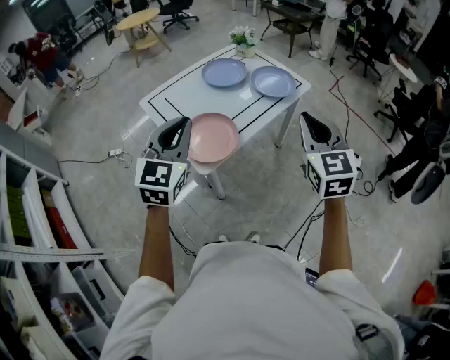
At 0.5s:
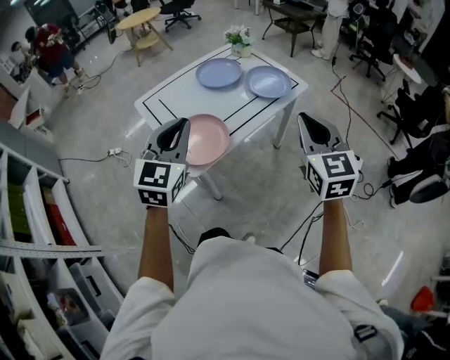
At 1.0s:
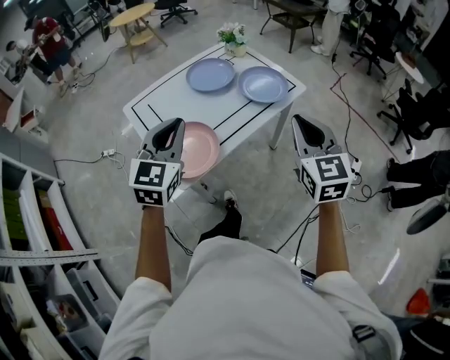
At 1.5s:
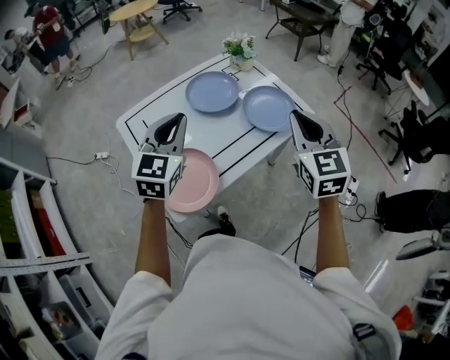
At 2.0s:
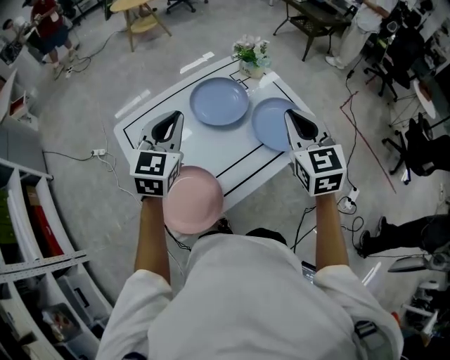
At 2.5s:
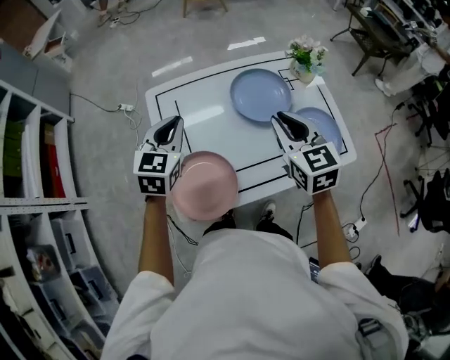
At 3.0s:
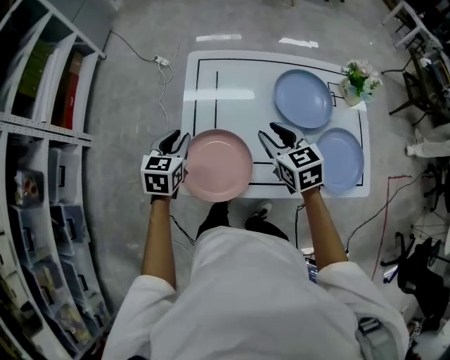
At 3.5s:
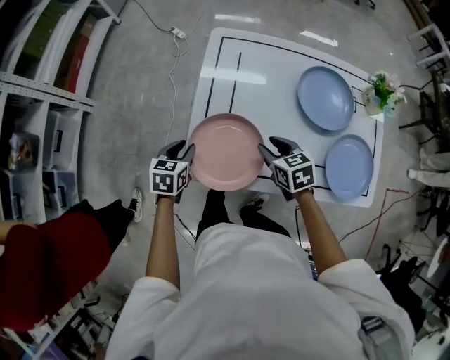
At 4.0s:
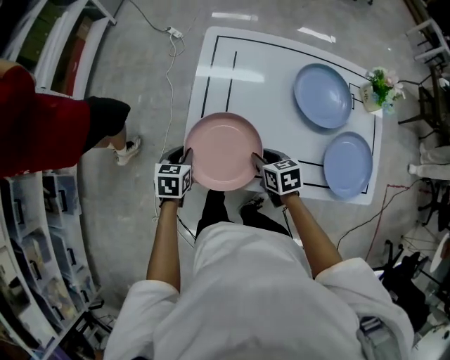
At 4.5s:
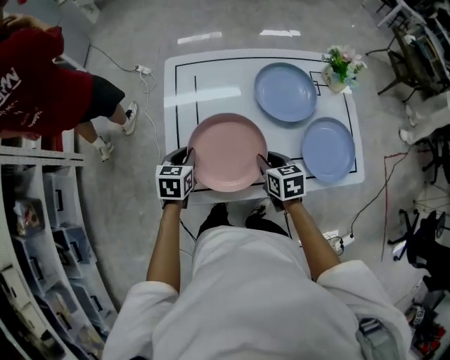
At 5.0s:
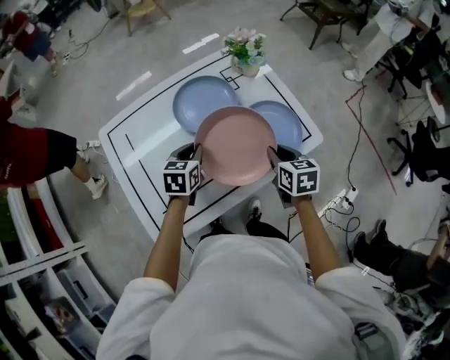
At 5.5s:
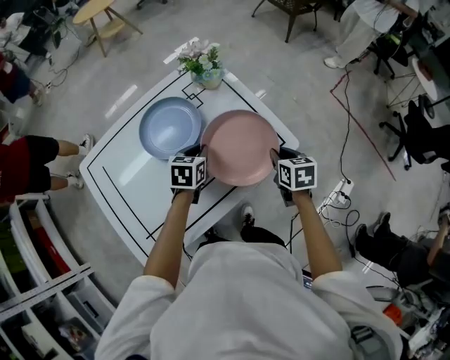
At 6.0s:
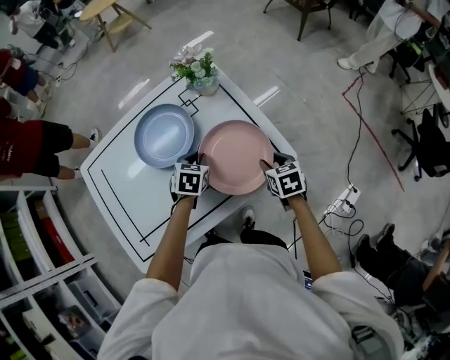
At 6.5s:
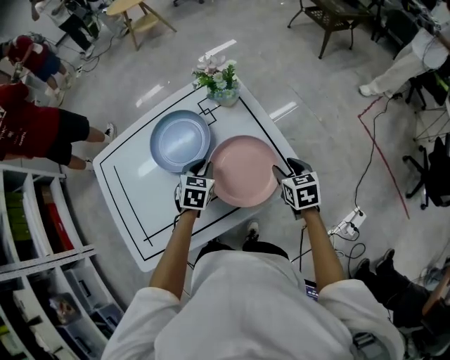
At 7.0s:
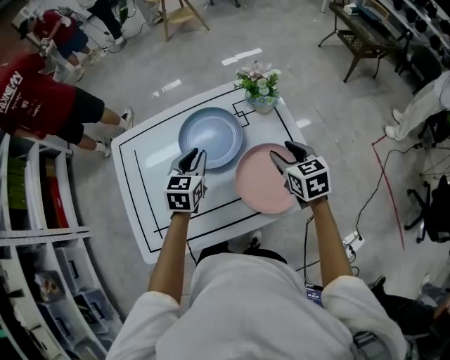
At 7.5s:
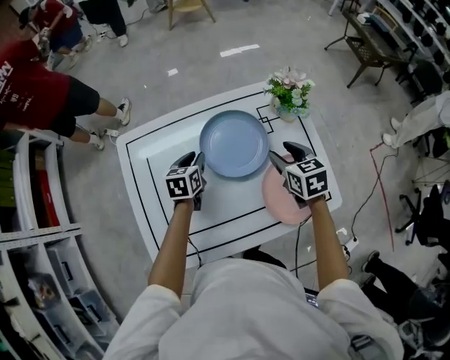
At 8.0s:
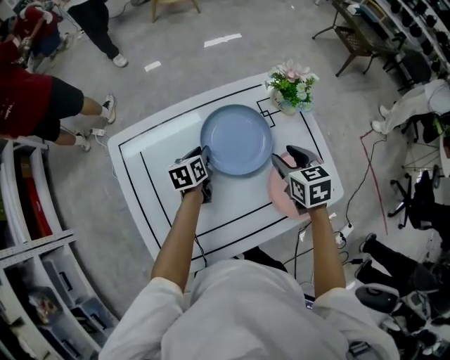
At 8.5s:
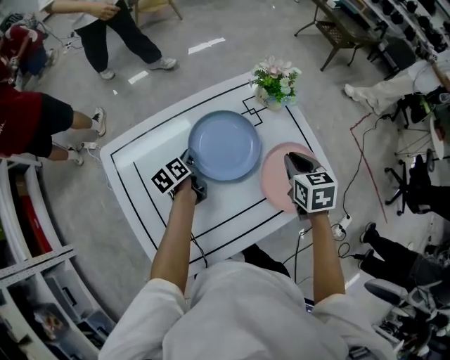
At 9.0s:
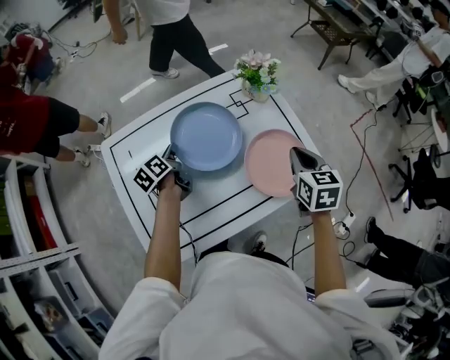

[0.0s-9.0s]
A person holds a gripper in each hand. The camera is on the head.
0.0s to 2.0s: Both grippers travel together forward, approximately 35 cm.
2.0s to 4.5s: The two grippers go about 30 cm downward. The right gripper swivels some 50 degrees. The left gripper points its fingers about 30 degrees further downward.
4.5s to 7.0s: The right gripper swings up and down, approximately 15 cm each way, with 2 reversals, and opens its fingers. Meanwhile the left gripper goes up and down, about 10 cm each way, reversing 2 times, and swivels some 20 degrees.
7.0s to 9.0s: The left gripper moves to the left and downward, about 15 cm, and rotates around the line of its fingers by roughly 50 degrees, counterclockwise from behind. The right gripper is displaced backward by some 5 cm, travels to the left and back again, about 15 cm each way, rotates some 20 degrees, and closes its fingers.

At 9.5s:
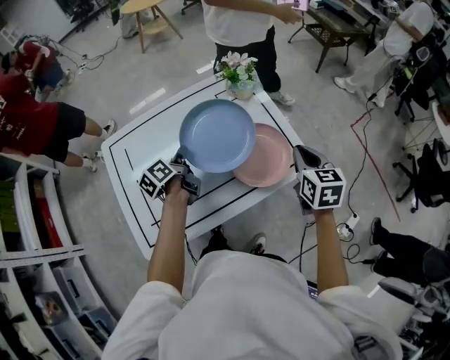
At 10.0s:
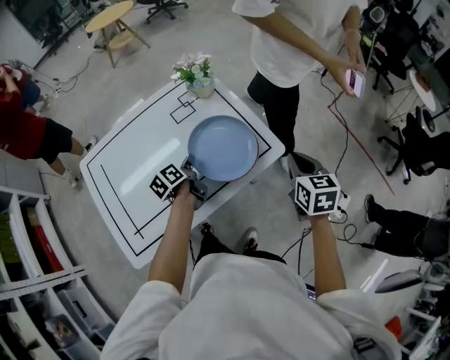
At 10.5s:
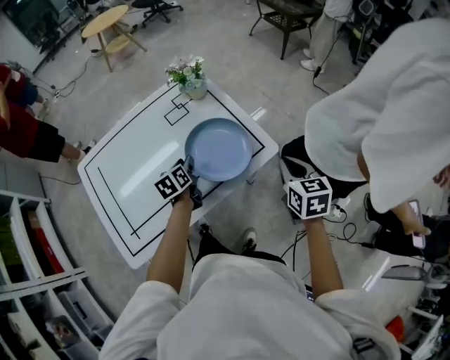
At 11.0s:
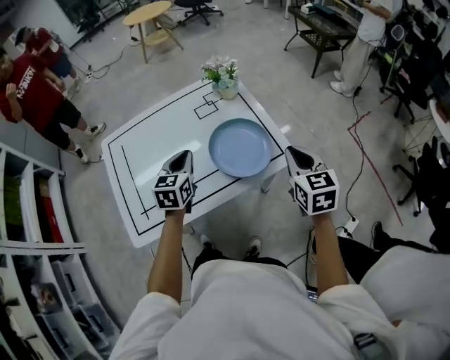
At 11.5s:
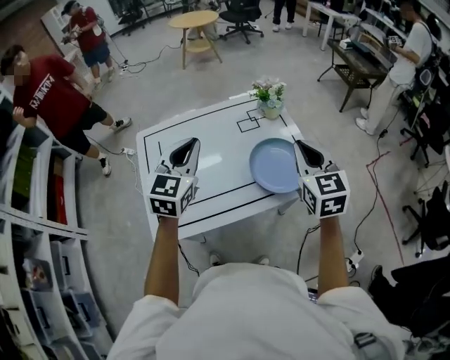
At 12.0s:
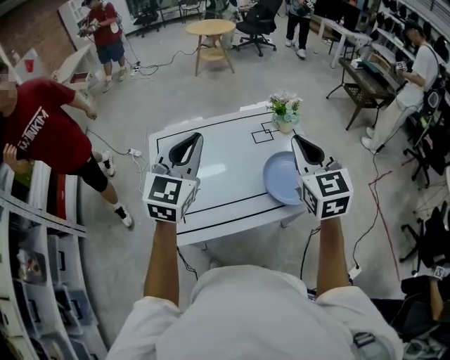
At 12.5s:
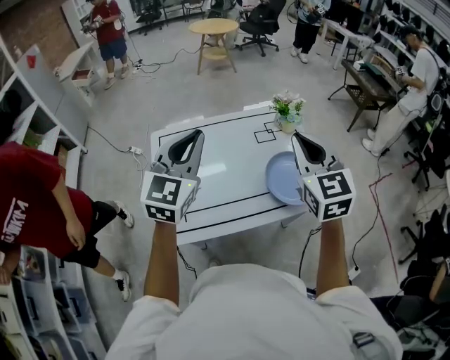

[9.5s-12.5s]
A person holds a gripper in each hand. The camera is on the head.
9.5s to 11.0s: The right gripper shifts about 10 cm backward and to the right, while the left gripper heads to the right, backward and upward, covering about 15 cm, rotates around the line of its fingers by approximately 60 degrees, clockwise from behind, and opens and closes again.
11.0s to 12.5s: The right gripper goes approximately 30 cm to the left and upward, and changes its angle by roughly 30 degrees, while the left gripper goes approximately 30 cm upward and to the left, and turns by some 30 degrees.

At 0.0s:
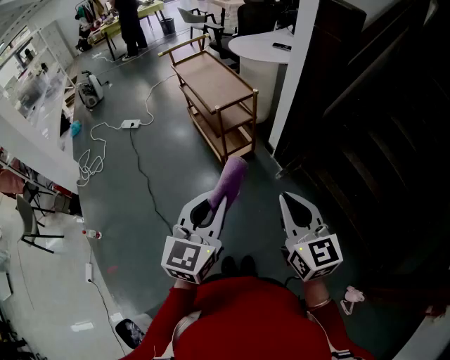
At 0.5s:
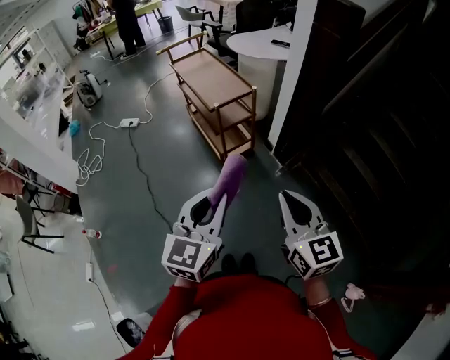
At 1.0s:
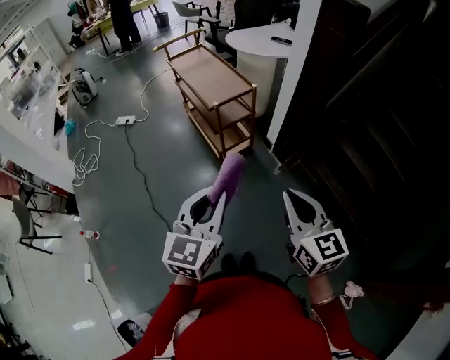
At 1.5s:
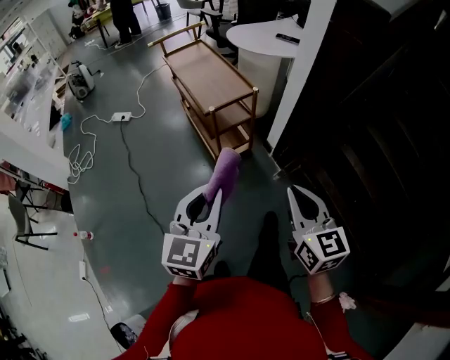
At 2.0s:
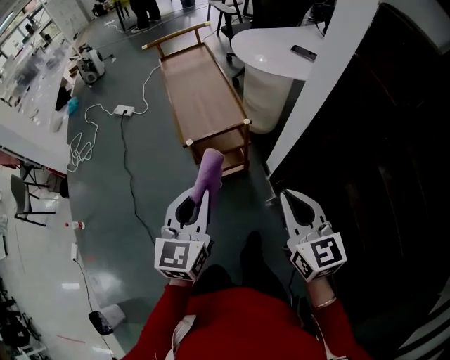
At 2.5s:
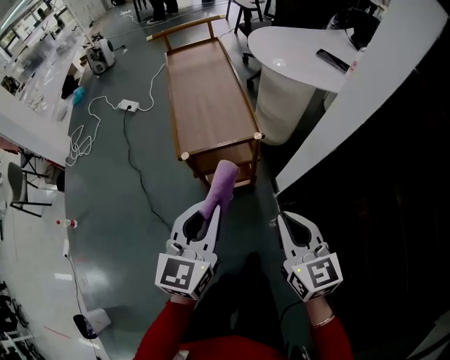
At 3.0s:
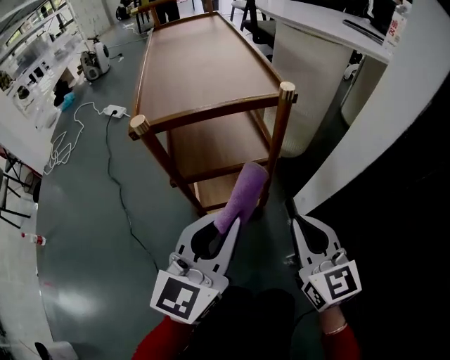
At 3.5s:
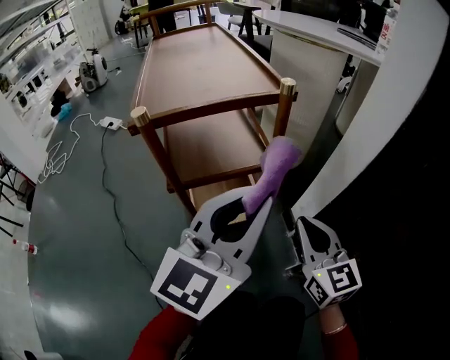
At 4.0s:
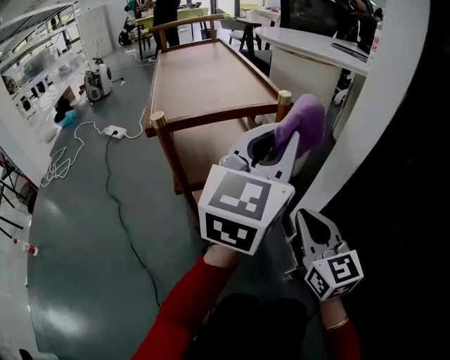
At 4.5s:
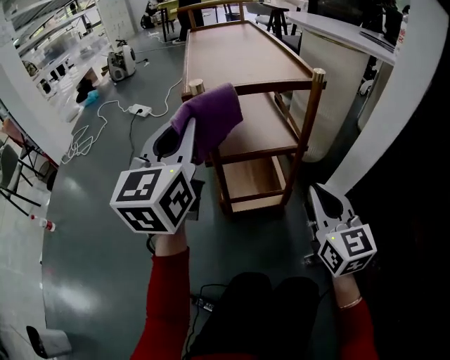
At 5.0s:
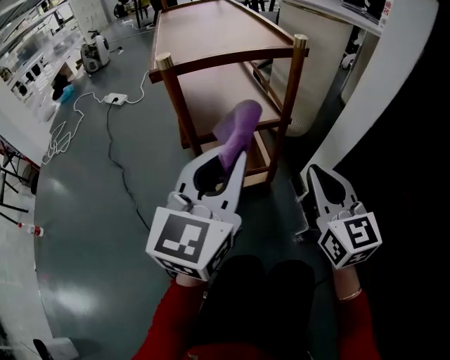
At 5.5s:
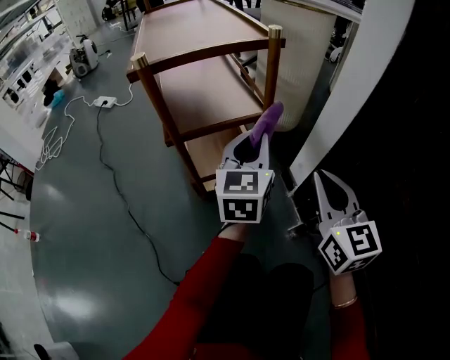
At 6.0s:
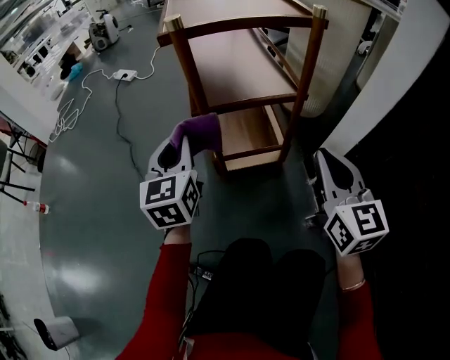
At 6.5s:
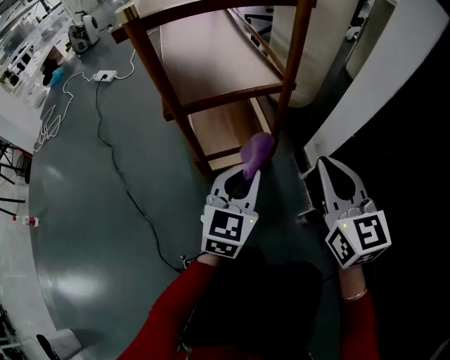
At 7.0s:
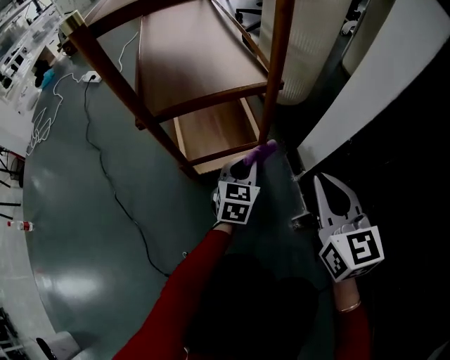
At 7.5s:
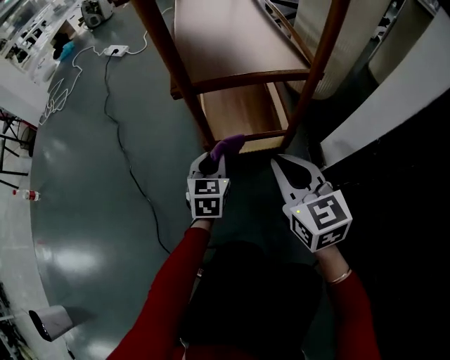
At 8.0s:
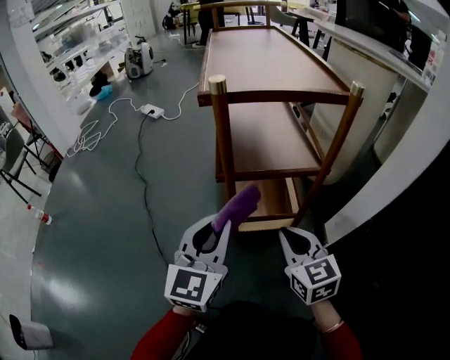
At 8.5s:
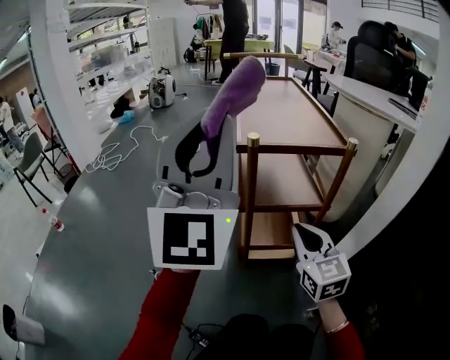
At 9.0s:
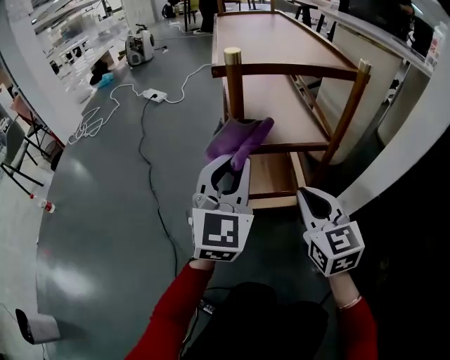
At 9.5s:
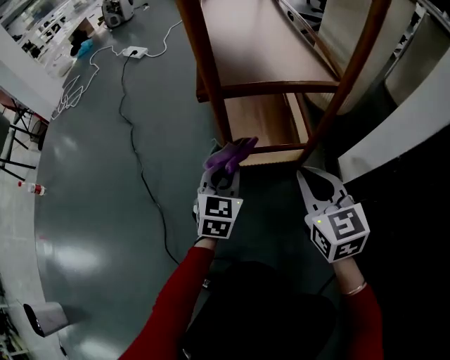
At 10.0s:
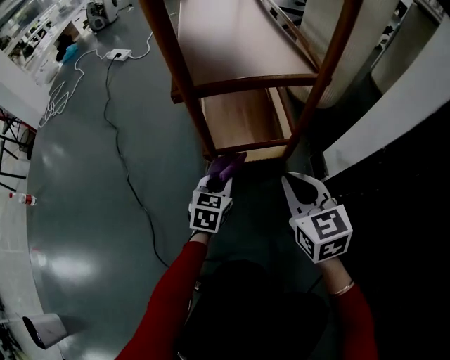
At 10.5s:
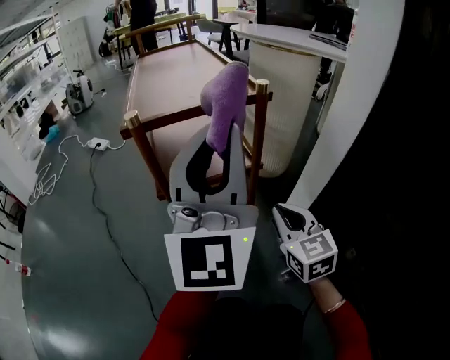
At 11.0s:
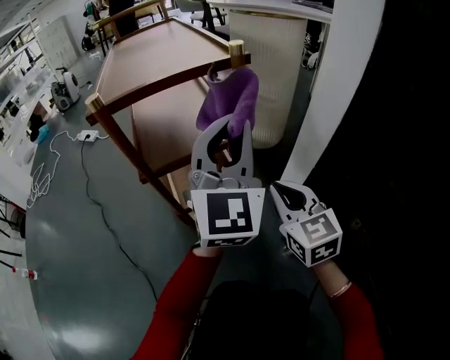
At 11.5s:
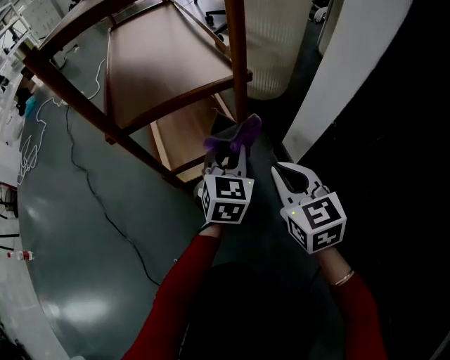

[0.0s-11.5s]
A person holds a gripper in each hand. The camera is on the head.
0.0s to 2.0s: The two grippers go about 30 cm forward. The left gripper turns by some 20 degrees.
2.0s to 4.0s: The right gripper moves downward and forward, about 40 cm. Meanwhile the left gripper moves forward, downward and to the right, some 30 cm, and rotates roughly 20 degrees.
4.0s to 6.0s: The left gripper swings left and right, roughly 25 cm each way, with 2 reversals, and turns by about 40 degrees.
6.0s to 7.5s: The left gripper travels downward by about 25 cm, reaches some 25 cm to the right, then returns, and turns by approximately 20 degrees. The right gripper travels downward and to the left by roughly 15 cm.
7.5s to 9.5s: The right gripper reaches about 15 cm upward, then returns. The left gripper moves approximately 60 cm upward and comes back.
9.5s to 11.5s: The right gripper shifts roughly 10 cm to the right, and travels upward and back again, about 10 cm each way; the left gripper swings up and down, some 50 cm each way, with 2 reversals.

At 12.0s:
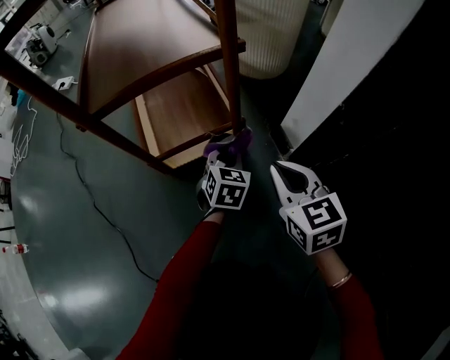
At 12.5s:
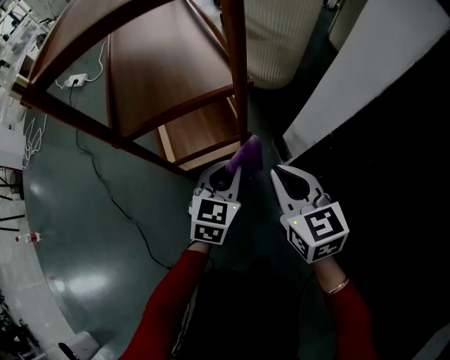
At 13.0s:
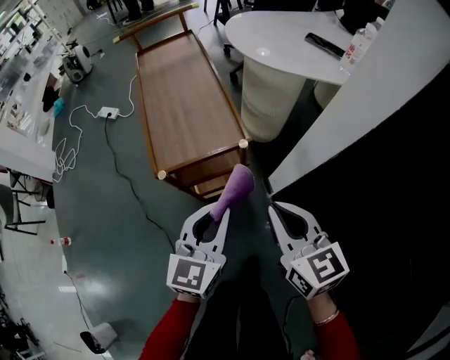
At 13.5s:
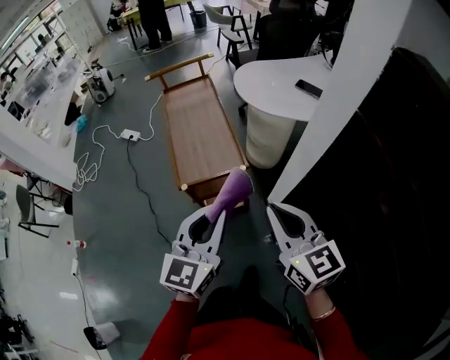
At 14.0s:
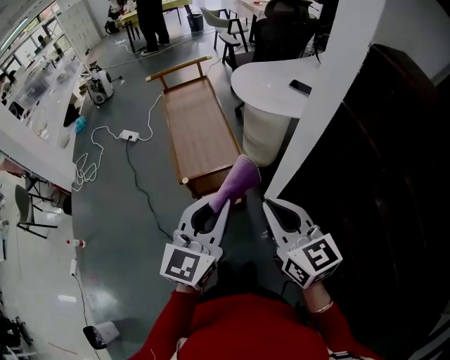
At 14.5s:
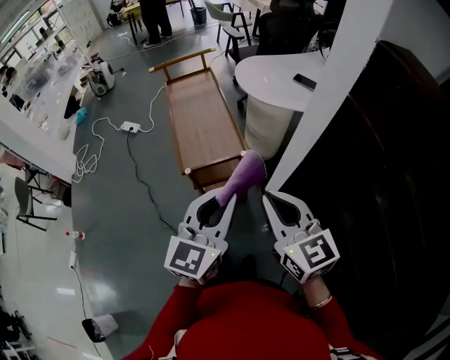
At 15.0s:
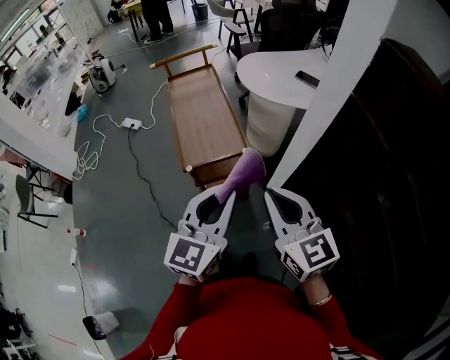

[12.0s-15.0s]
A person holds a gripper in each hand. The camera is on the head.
12.0s to 13.5s: Both grippers move upward, about 70 cm. The left gripper tilts its fingers roughly 30 degrees upward, while the right gripper swivels some 20 degrees.
13.5s to 15.0s: The grippers move only a little.
